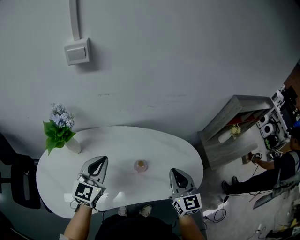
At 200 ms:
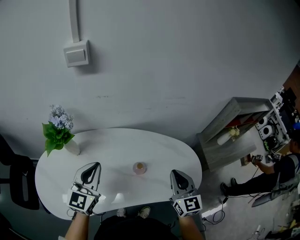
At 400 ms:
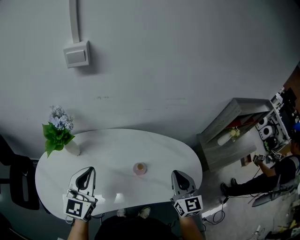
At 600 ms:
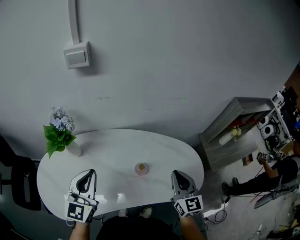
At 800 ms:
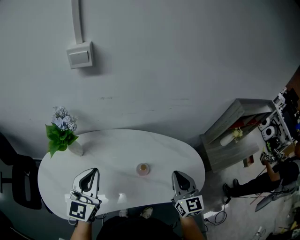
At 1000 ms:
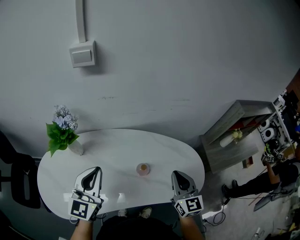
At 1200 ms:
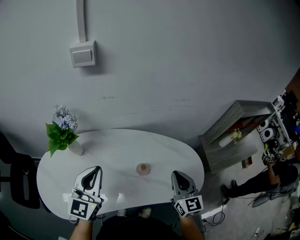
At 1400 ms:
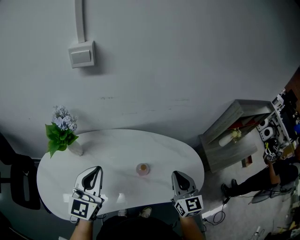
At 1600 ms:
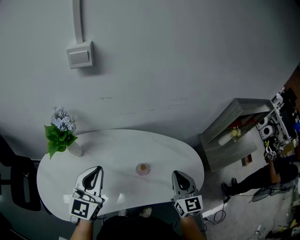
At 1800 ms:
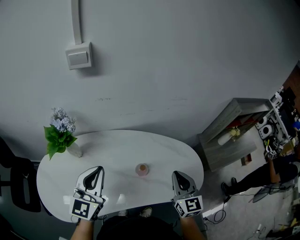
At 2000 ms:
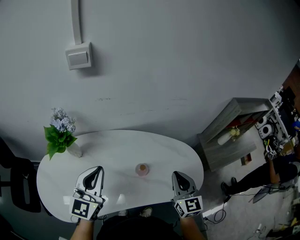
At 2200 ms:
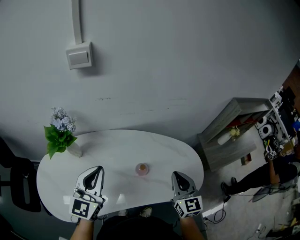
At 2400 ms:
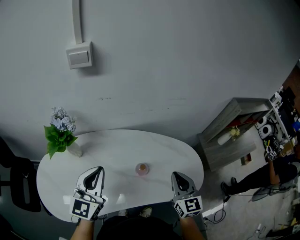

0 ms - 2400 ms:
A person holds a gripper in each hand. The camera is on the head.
0 ms - 1200 ms: The left gripper shifts by roughly 5 cm.
1200 ms - 2400 ms: Neither gripper changes place.

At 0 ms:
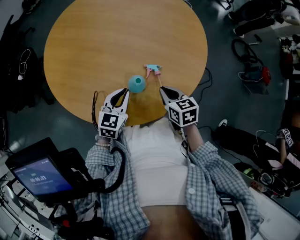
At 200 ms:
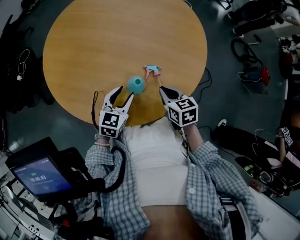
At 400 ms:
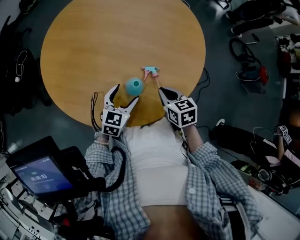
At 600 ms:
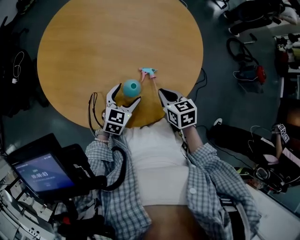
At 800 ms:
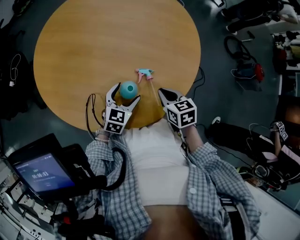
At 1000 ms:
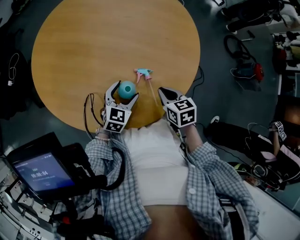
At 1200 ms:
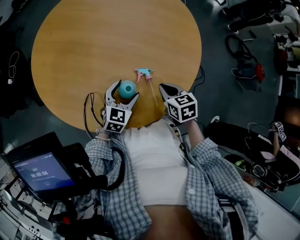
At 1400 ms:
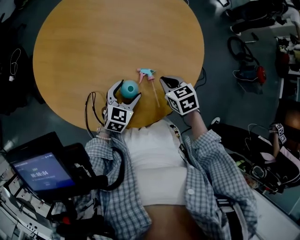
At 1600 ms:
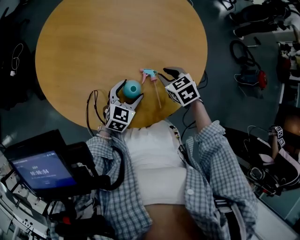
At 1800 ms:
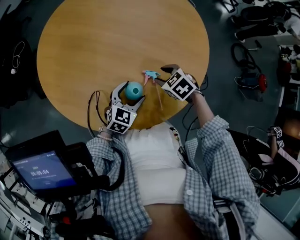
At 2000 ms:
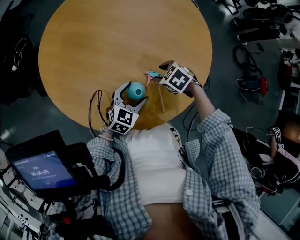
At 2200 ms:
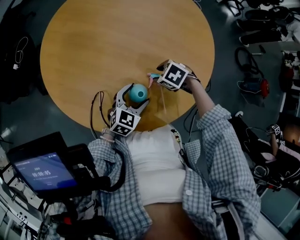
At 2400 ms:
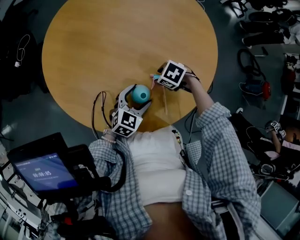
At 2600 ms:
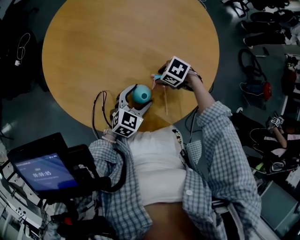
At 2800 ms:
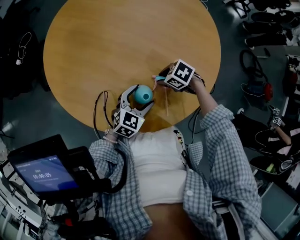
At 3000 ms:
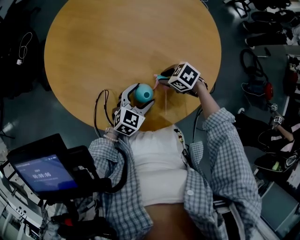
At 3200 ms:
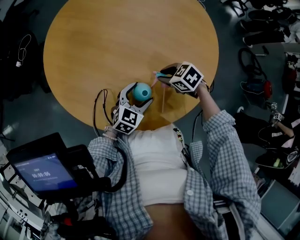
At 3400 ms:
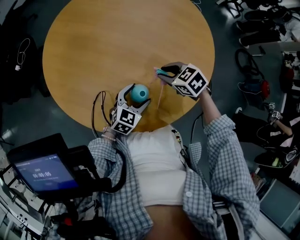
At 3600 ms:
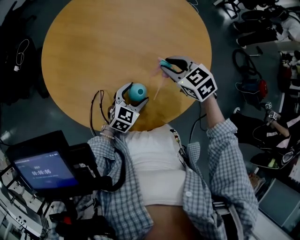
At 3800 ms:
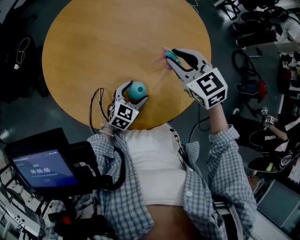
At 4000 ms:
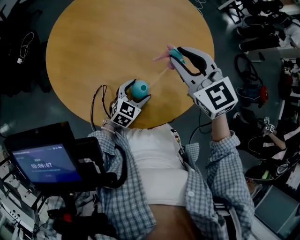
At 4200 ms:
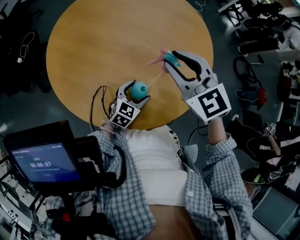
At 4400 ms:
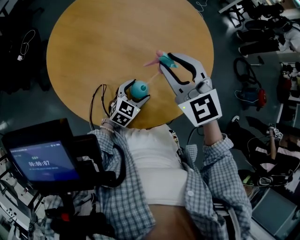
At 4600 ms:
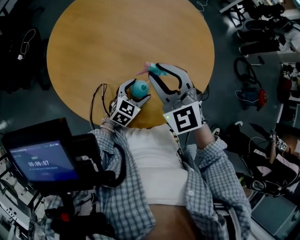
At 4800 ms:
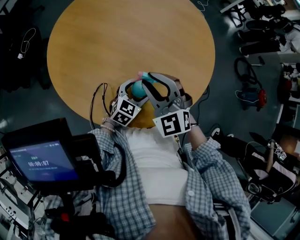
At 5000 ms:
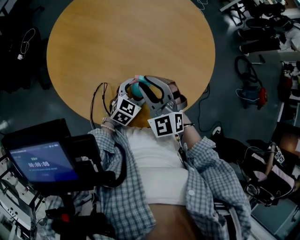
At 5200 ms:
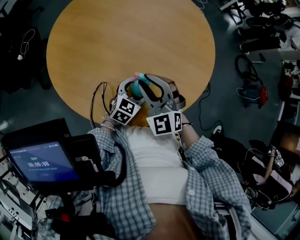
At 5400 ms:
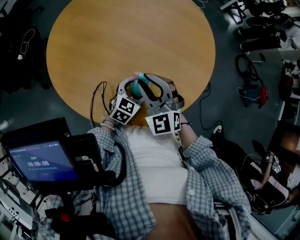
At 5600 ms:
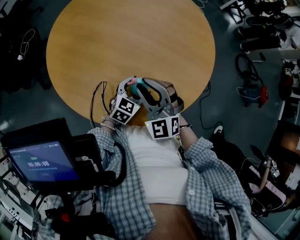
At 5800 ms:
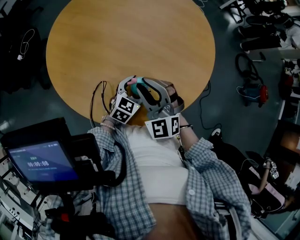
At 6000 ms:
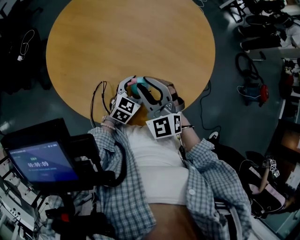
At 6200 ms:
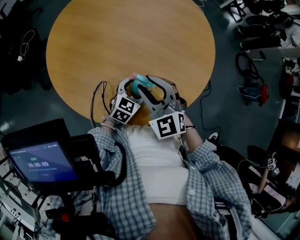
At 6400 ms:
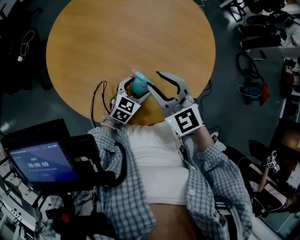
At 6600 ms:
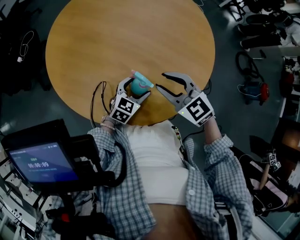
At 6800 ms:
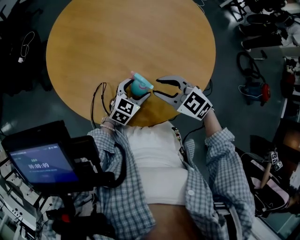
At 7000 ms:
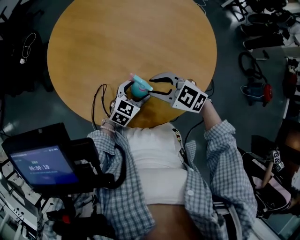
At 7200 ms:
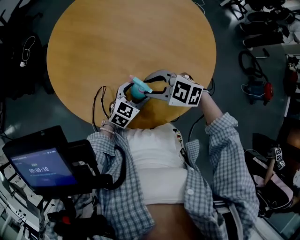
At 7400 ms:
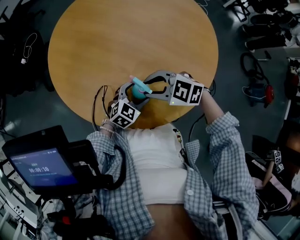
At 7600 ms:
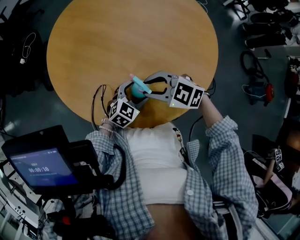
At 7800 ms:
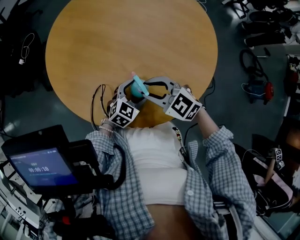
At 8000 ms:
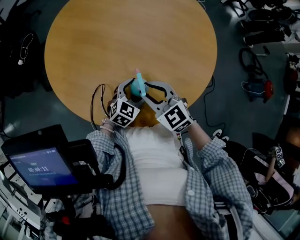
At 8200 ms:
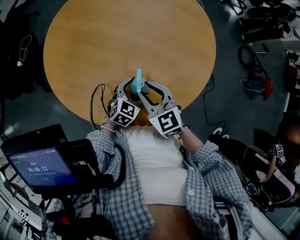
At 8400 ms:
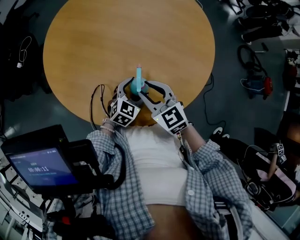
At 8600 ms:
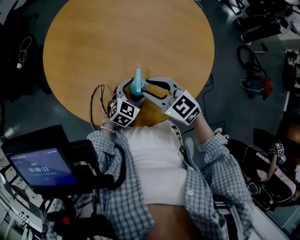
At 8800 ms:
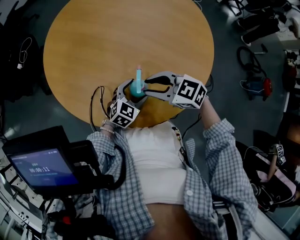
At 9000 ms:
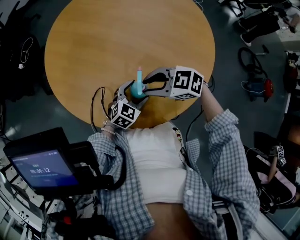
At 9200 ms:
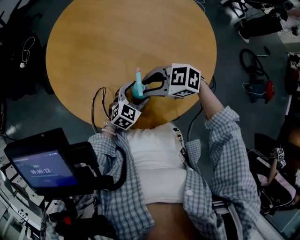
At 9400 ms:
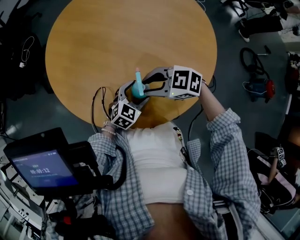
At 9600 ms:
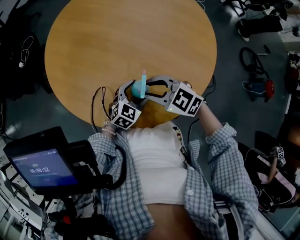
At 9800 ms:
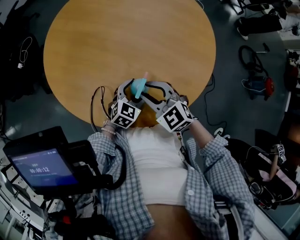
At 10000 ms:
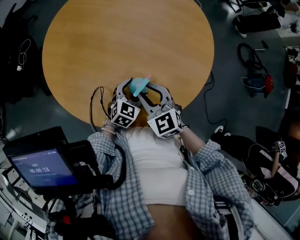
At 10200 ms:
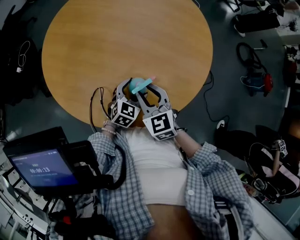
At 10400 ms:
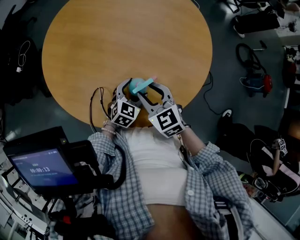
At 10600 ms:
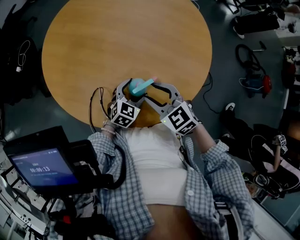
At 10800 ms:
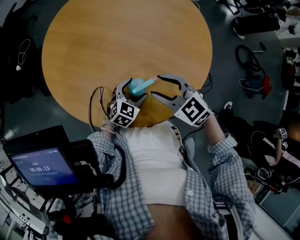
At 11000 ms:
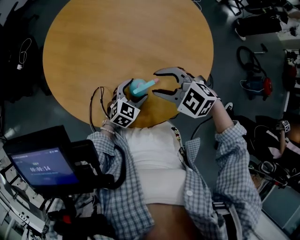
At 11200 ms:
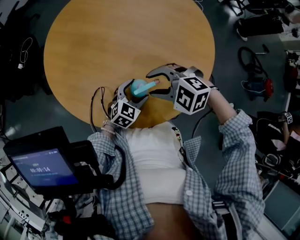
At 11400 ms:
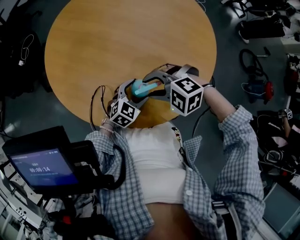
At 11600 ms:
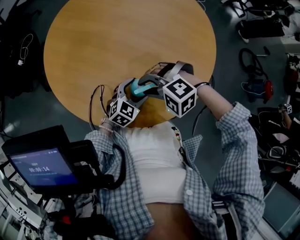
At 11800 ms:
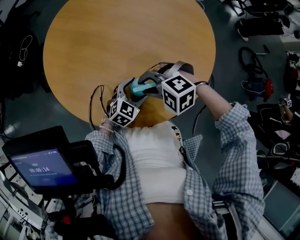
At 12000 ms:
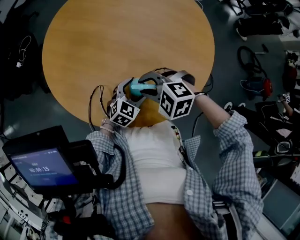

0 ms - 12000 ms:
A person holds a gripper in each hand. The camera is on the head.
0 ms - 1600 ms: The left gripper opens up. Meanwhile the right gripper is displaced forward by some 5 cm, and swivels about 30 degrees.
1600 ms - 3000 ms: The right gripper heads downward, covering roughly 5 cm, and turns by roughly 30 degrees.
3000 ms - 4400 ms: The right gripper shifts about 25 cm upward, and tips its fingers upward by roughly 40 degrees.
4400 ms - 6000 ms: The right gripper moves downward and backward, about 15 cm.
6000 ms - 7600 ms: The right gripper ends up roughly 5 cm from where it was, and swivels about 50 degrees.
9000 ms - 10400 ms: The right gripper turns by about 50 degrees.
10400 ms - 12000 ms: The right gripper turns by roughly 60 degrees.

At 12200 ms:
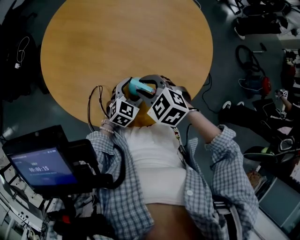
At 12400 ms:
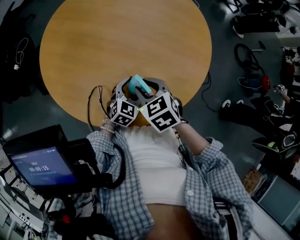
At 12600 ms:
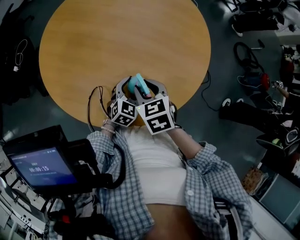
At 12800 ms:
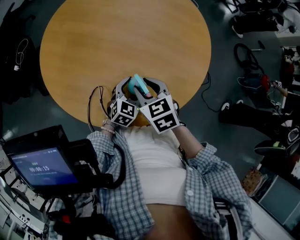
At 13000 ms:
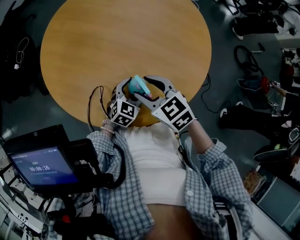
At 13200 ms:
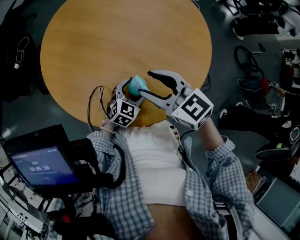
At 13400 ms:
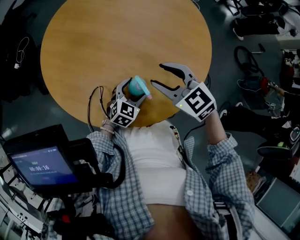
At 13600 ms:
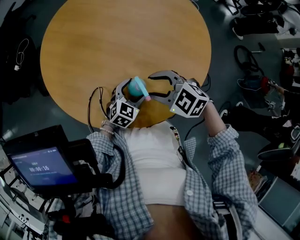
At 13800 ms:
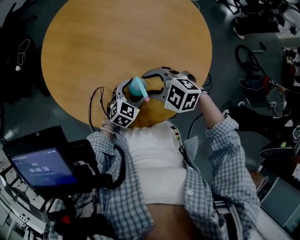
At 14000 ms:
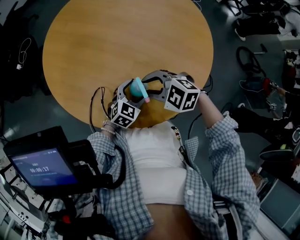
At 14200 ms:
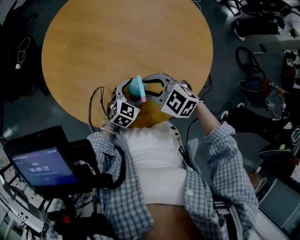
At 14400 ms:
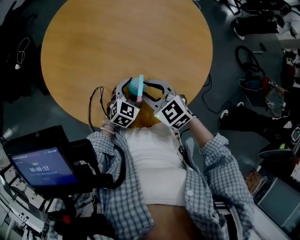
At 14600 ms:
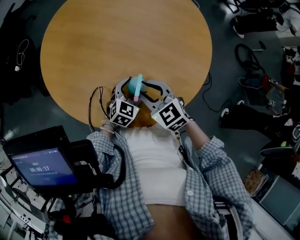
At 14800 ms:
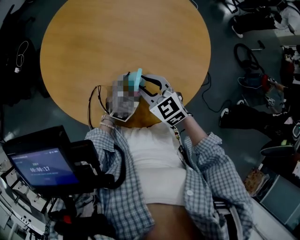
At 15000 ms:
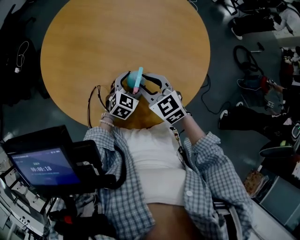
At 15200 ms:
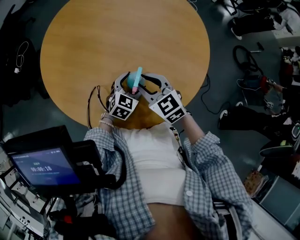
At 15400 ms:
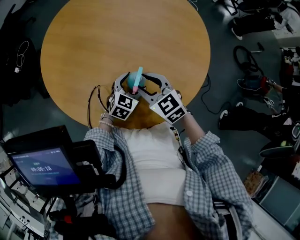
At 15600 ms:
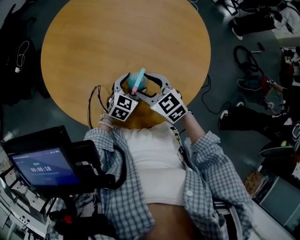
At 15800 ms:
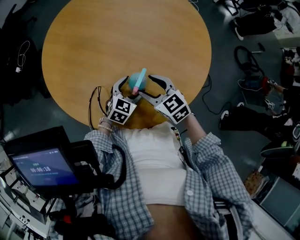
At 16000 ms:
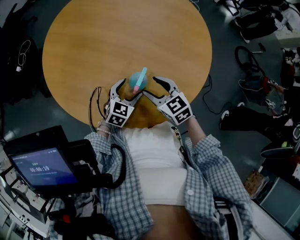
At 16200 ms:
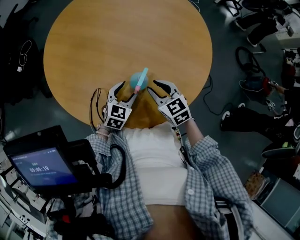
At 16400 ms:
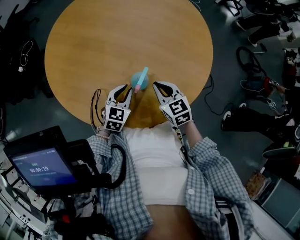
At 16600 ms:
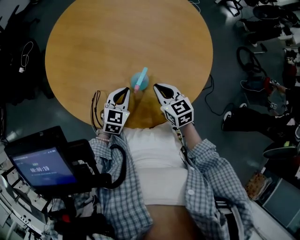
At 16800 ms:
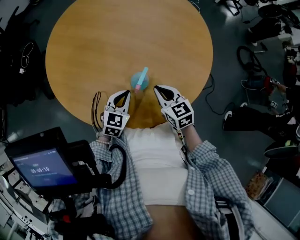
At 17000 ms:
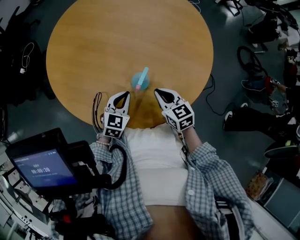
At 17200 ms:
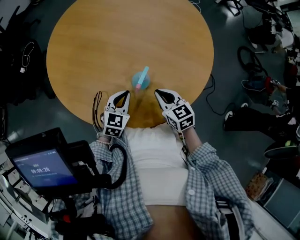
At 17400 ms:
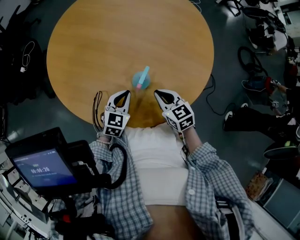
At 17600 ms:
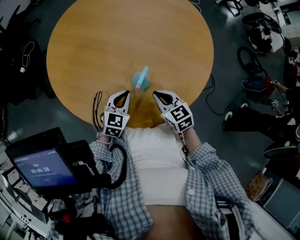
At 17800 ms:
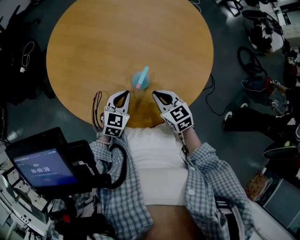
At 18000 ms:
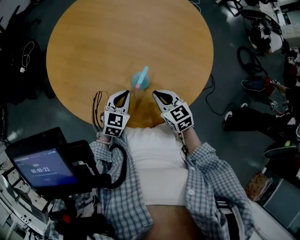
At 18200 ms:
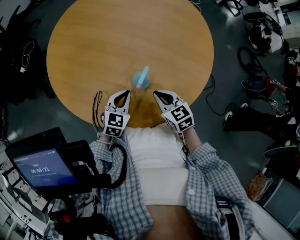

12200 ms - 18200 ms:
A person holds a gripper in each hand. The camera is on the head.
12200 ms - 13800 ms: The right gripper goes upward and returns, roughly 10 cm each way, and turns by about 20 degrees.
13800 ms - 15200 ms: The right gripper changes its angle by approximately 40 degrees, and closes its fingers.
15200 ms - 16600 ms: The left gripper is displaced to the left by approximately 5 cm, and closes, while the right gripper is displaced to the right and downward by some 10 cm, swivels roughly 20 degrees, and closes up.
16600 ms - 18200 ms: There are only small adjustments of the grippers.

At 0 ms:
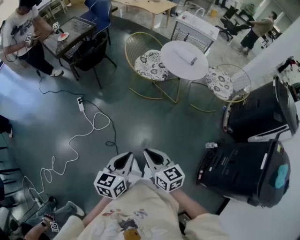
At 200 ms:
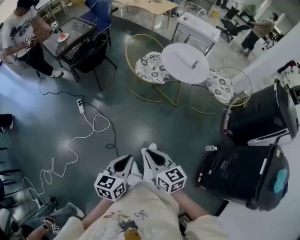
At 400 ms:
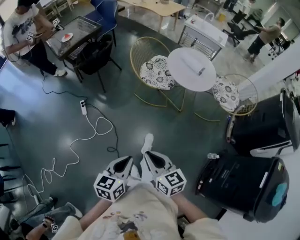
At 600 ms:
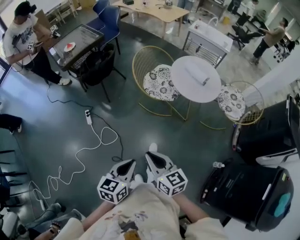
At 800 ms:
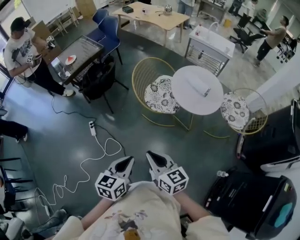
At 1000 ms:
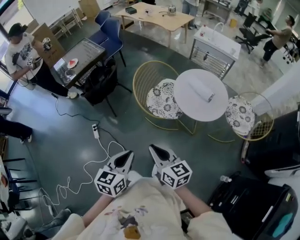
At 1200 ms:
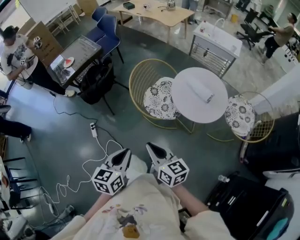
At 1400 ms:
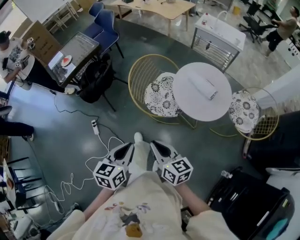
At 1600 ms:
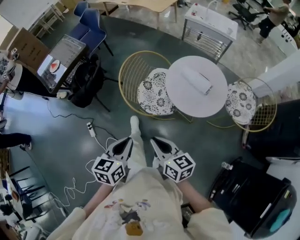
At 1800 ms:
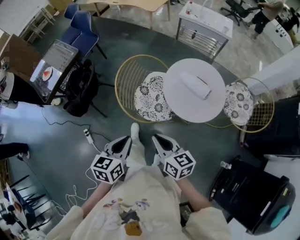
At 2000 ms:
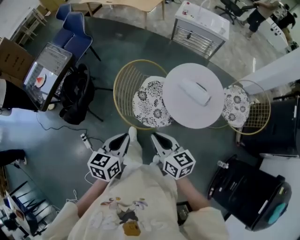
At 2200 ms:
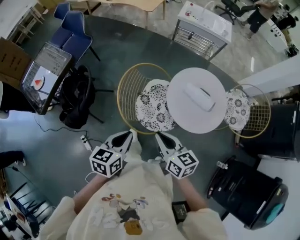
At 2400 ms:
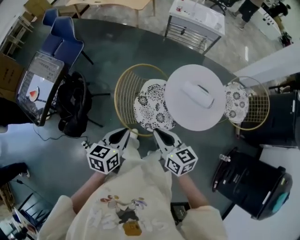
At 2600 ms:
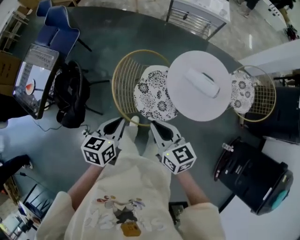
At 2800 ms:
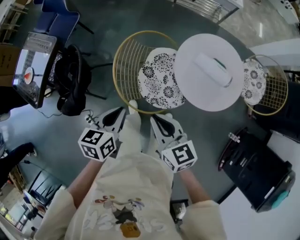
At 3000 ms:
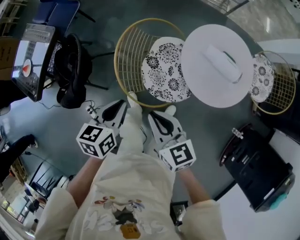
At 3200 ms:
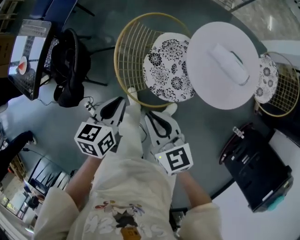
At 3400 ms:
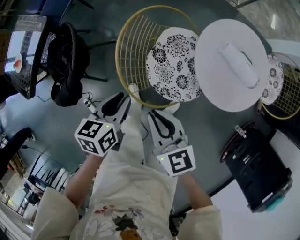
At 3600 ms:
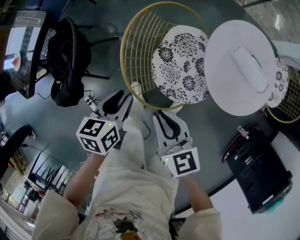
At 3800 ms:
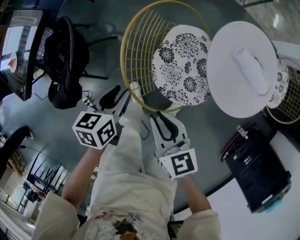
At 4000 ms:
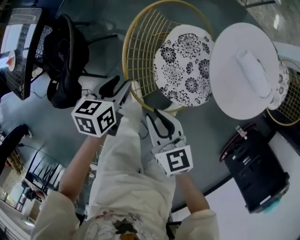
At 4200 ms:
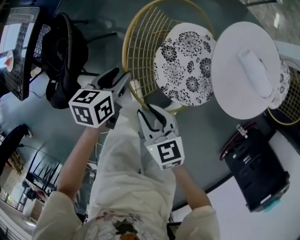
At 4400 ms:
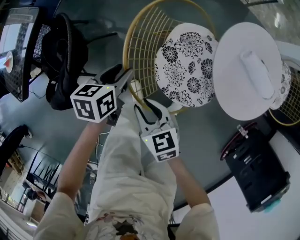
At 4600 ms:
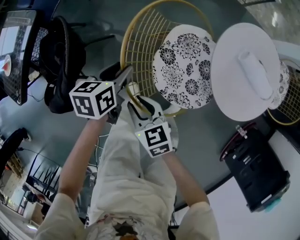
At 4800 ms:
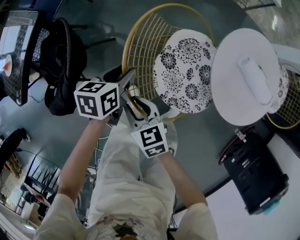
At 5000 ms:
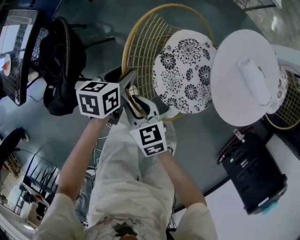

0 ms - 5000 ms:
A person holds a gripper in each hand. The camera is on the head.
0 ms - 1600 ms: The two grippers travel together, forward, approximately 50 cm.
1600 ms - 3400 ms: The two grippers go some 40 cm forward, downward and to the left.
3400 ms - 5000 ms: The right gripper moves downward and to the left, approximately 20 cm, and opens; the left gripper heads downward and forward, covering about 20 cm.
